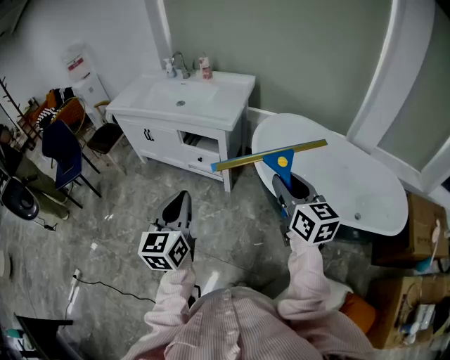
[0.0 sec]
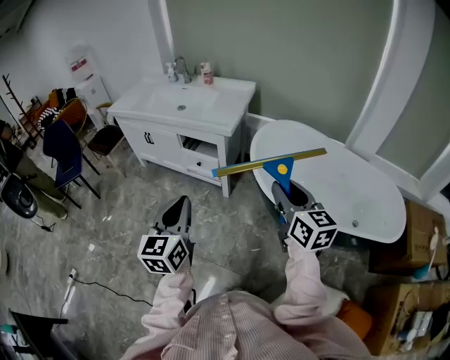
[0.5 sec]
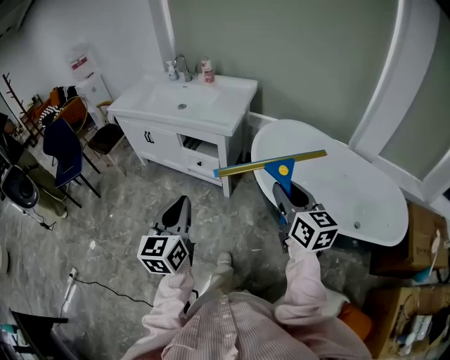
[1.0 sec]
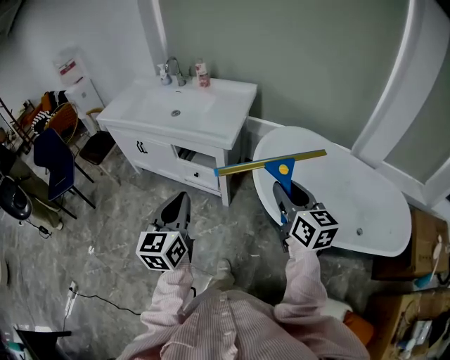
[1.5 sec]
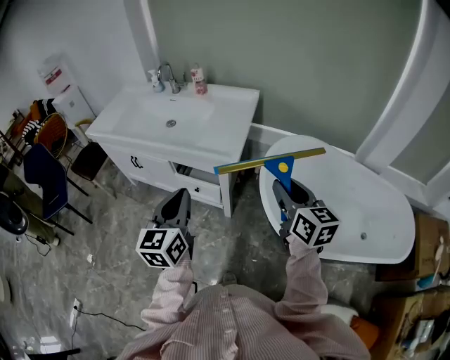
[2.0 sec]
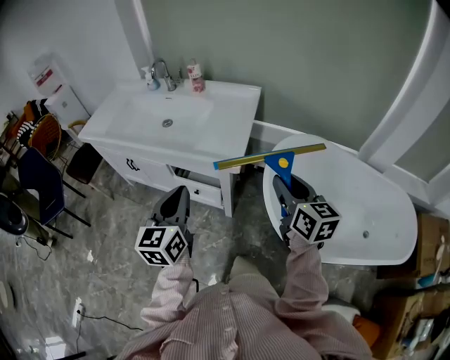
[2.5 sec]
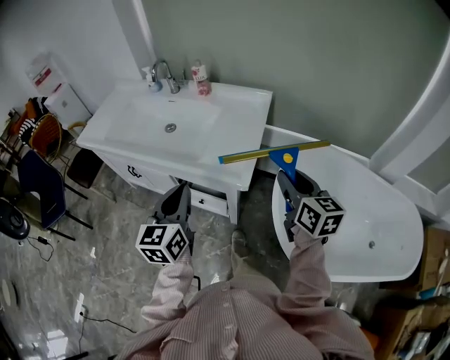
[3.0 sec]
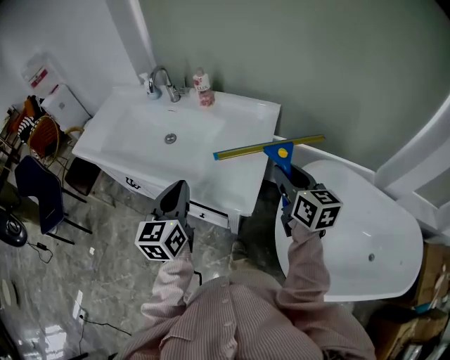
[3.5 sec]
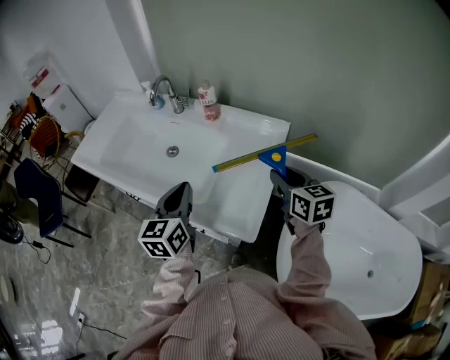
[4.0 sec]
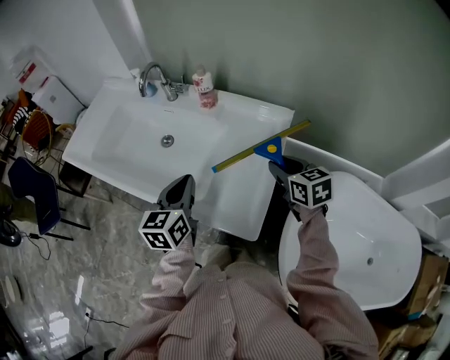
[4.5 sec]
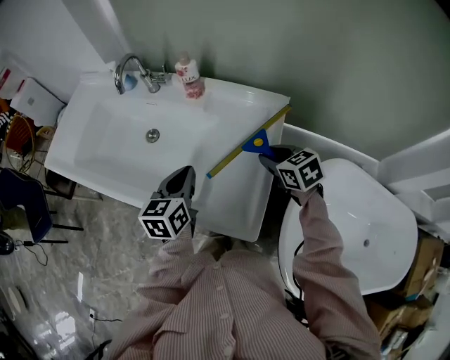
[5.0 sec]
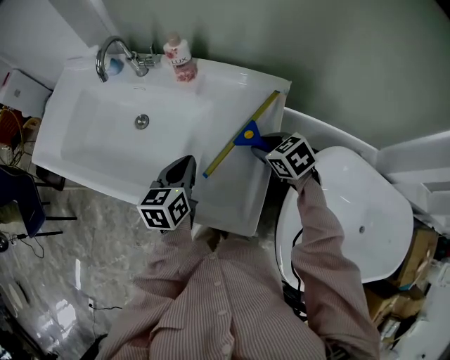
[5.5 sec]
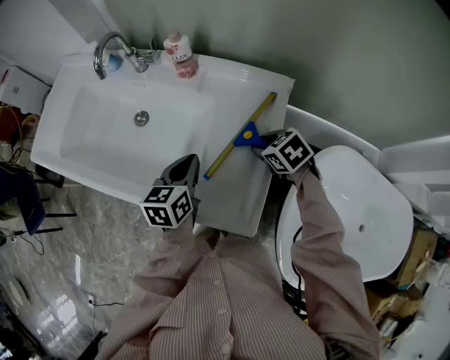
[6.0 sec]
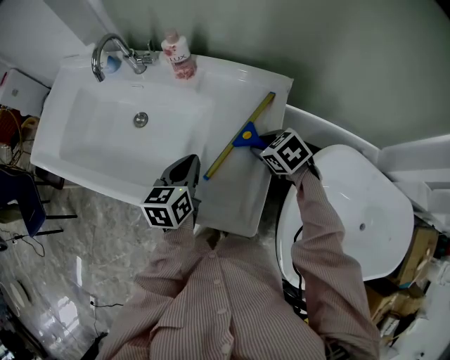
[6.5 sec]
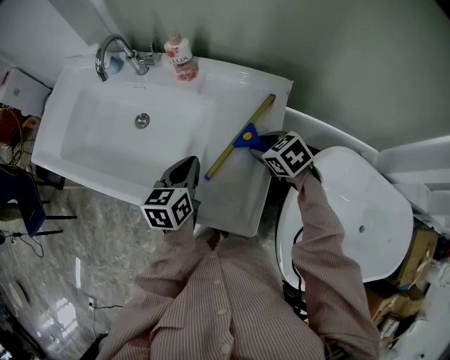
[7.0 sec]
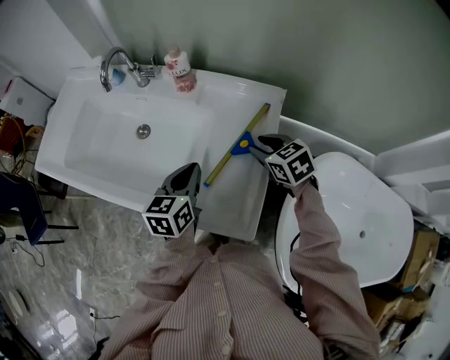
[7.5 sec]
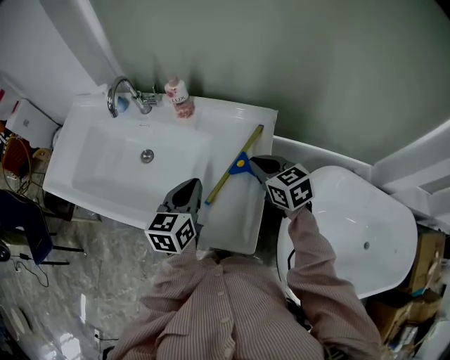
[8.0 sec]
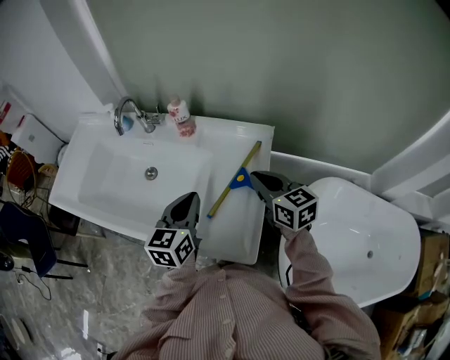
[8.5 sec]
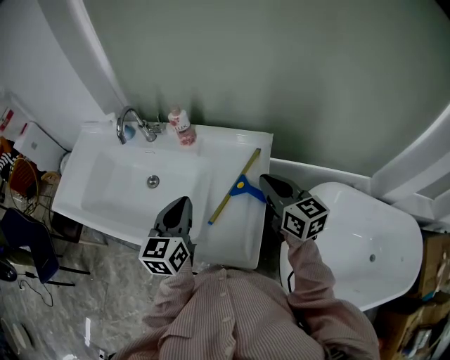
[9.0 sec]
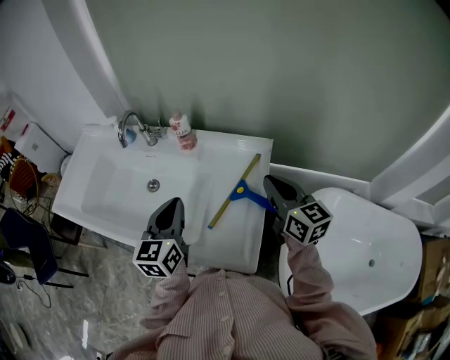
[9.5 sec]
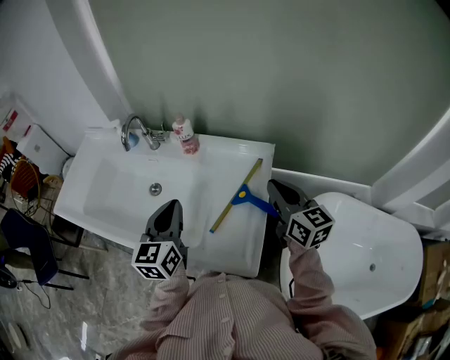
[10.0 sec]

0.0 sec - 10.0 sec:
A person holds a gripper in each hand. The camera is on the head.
0.0 sec - 2.0 sec: The grippers both shift forward by some 25 cm.
2.0 sec - 4.0 sec: Both grippers move forward, roughly 40 cm.
4.0 sec - 6.0 sec: The right gripper goes about 20 cm downward and forward, and tips its fingers downward by approximately 40 degrees. Meanwhile the left gripper moves downward, forward and to the right, approximately 20 cm, and rotates some 20 degrees.
6.0 sec - 8.0 sec: The left gripper heads upward, covering some 5 cm, while the right gripper is displaced upward by roughly 10 cm, rotates approximately 30 degrees, and closes.
8.0 sec - 10.0 sec: The left gripper goes approximately 10 cm upward and to the left; the right gripper is displaced upward by about 10 cm, and rotates approximately 30 degrees.

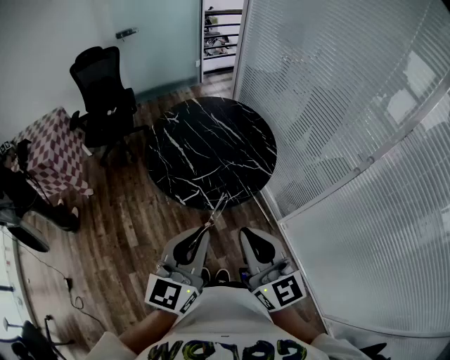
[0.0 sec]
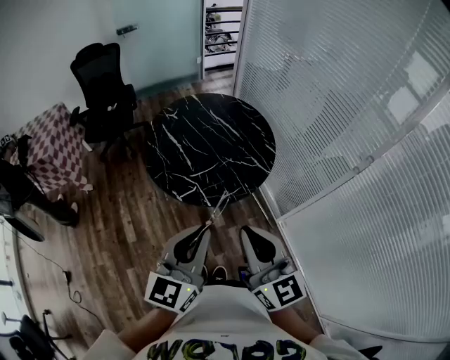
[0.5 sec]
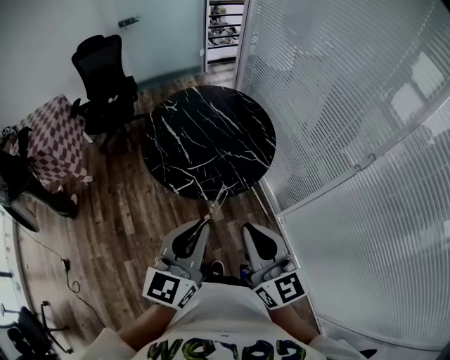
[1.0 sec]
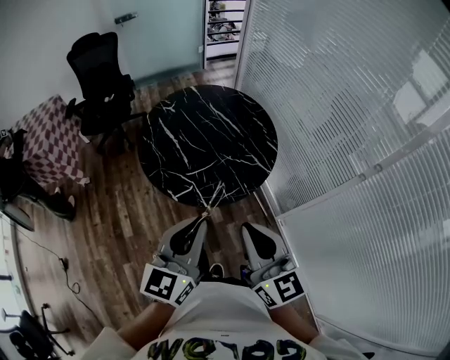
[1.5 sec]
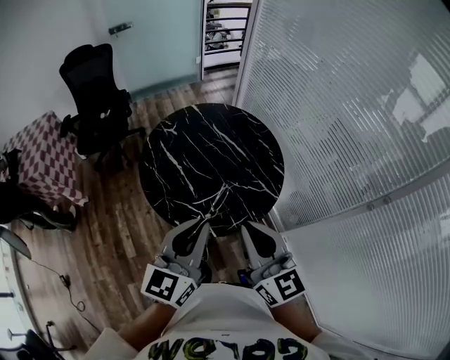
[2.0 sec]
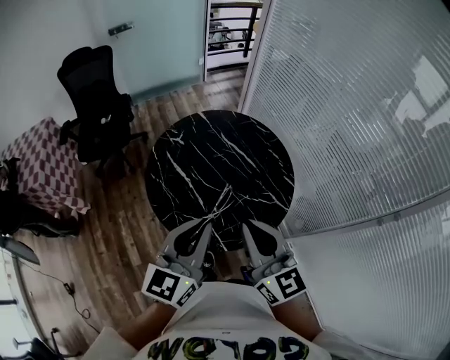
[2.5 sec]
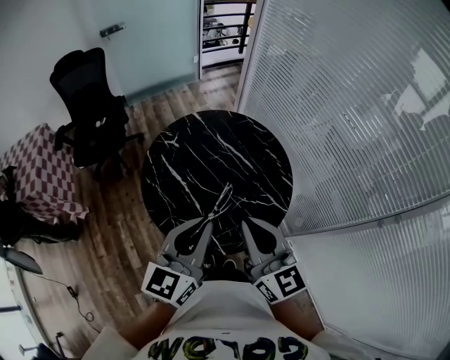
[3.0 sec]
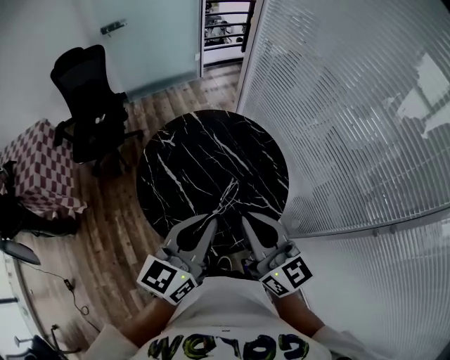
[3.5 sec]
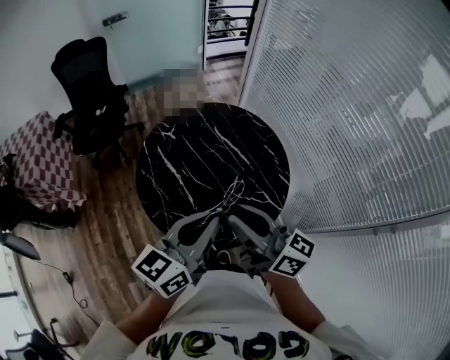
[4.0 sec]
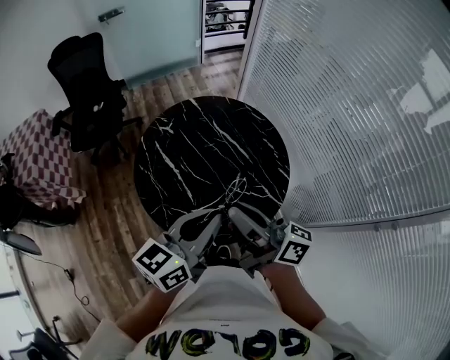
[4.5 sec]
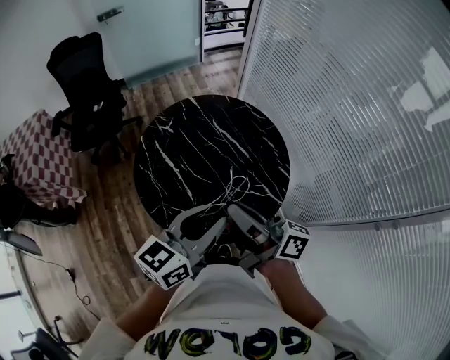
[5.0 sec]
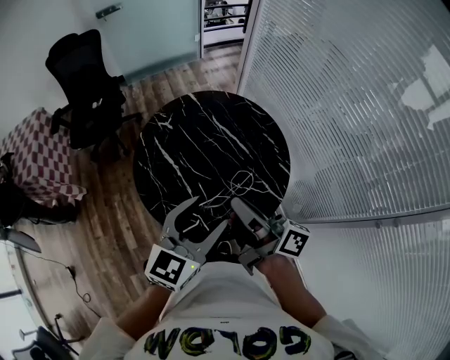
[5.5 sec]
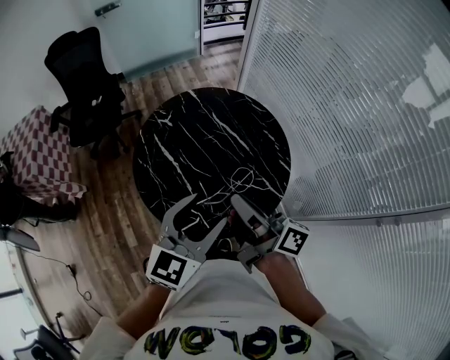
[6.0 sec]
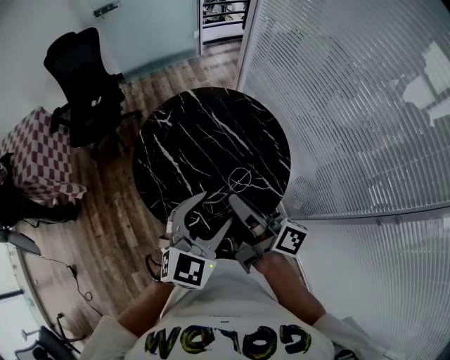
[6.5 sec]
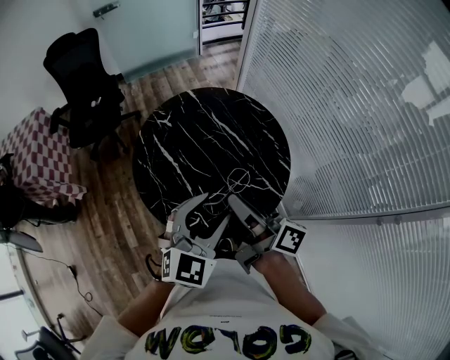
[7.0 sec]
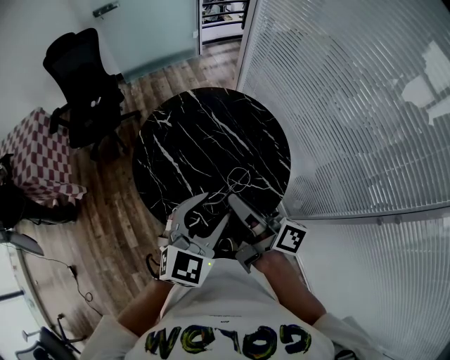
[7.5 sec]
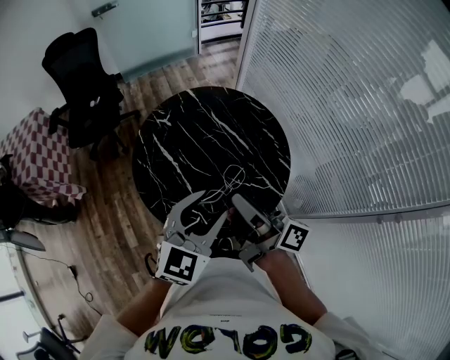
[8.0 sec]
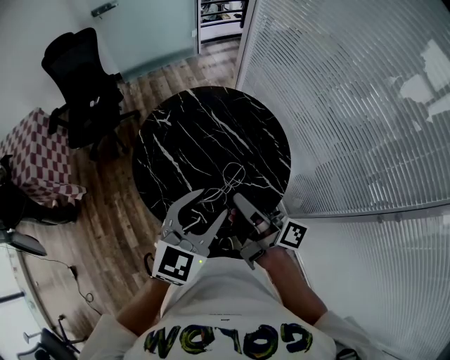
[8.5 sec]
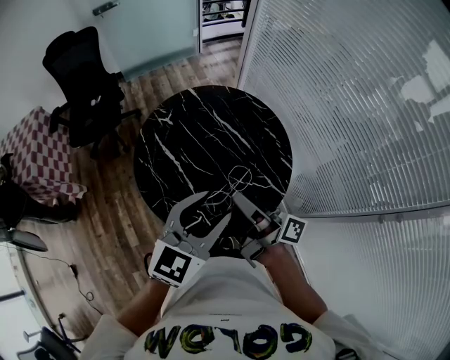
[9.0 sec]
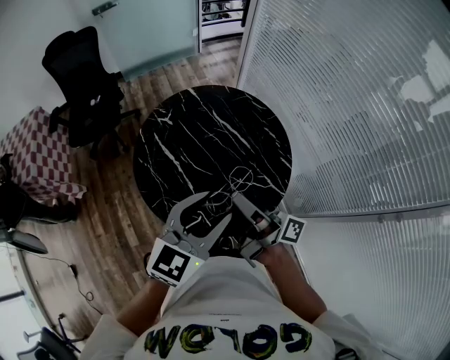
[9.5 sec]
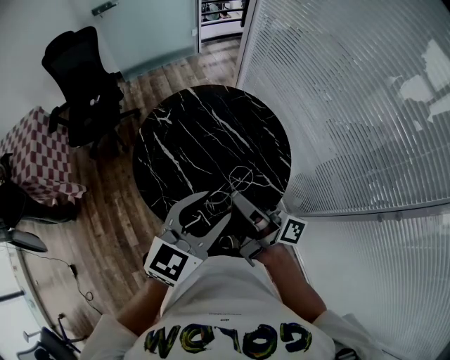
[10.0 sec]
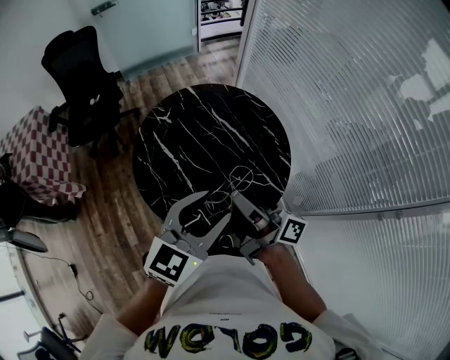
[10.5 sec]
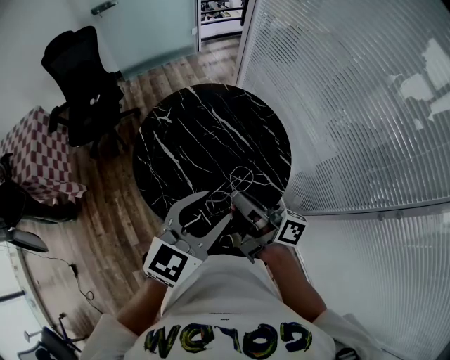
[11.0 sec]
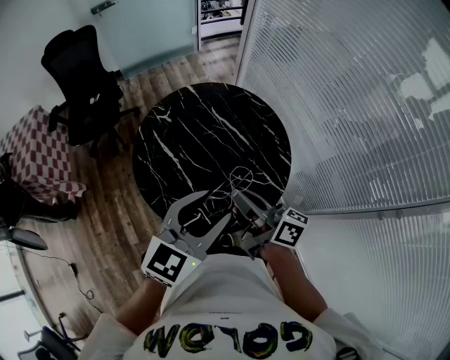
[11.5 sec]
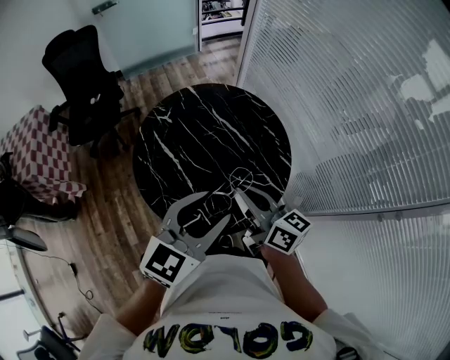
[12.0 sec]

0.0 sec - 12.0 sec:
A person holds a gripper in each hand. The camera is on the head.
0.0 sec - 2.0 sec: Both grippers move forward, some 20 cm.
2.0 sec - 4.0 sec: Both grippers travel together forward, some 15 cm. The right gripper turns by approximately 40 degrees, and opens.
4.0 sec - 6.0 sec: The left gripper rotates roughly 30 degrees, and opens up. Meanwhile the right gripper changes place by approximately 5 cm, and rotates approximately 30 degrees.
6.0 sec - 10.0 sec: The grippers stay close to where they were, moving slightly.
10.0 sec - 12.0 sec: The right gripper rotates roughly 50 degrees.

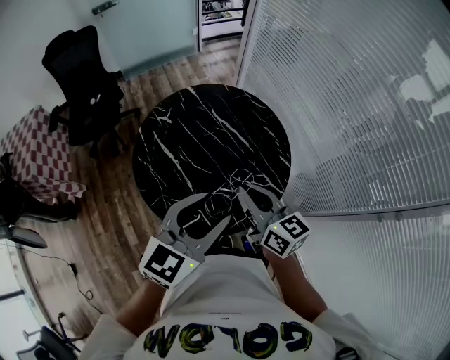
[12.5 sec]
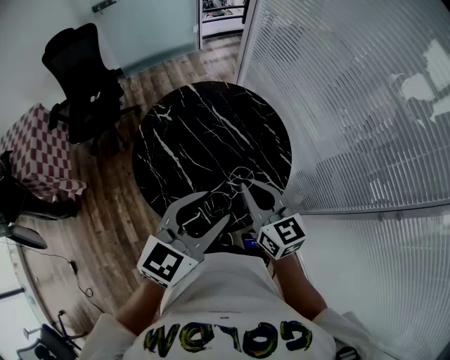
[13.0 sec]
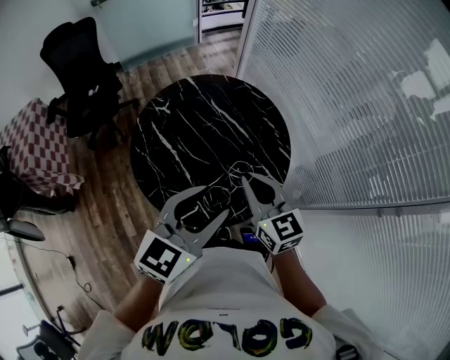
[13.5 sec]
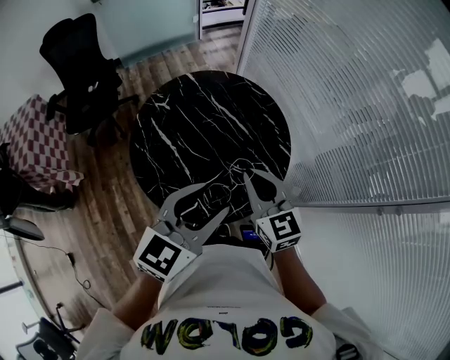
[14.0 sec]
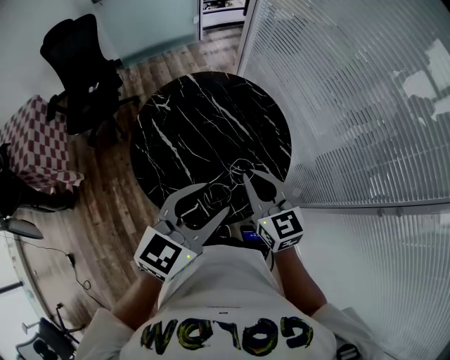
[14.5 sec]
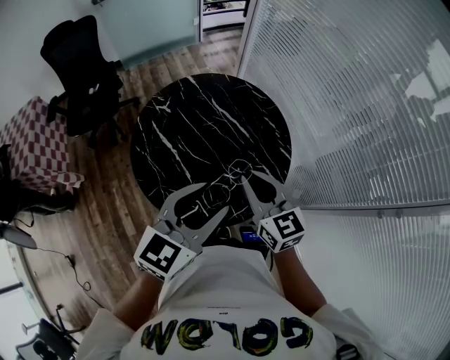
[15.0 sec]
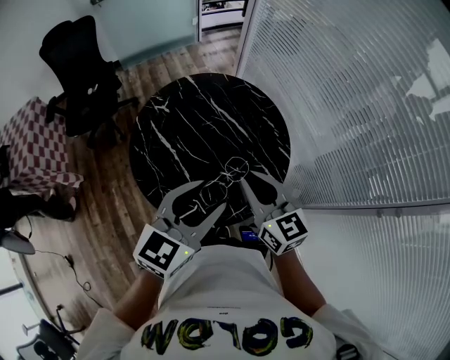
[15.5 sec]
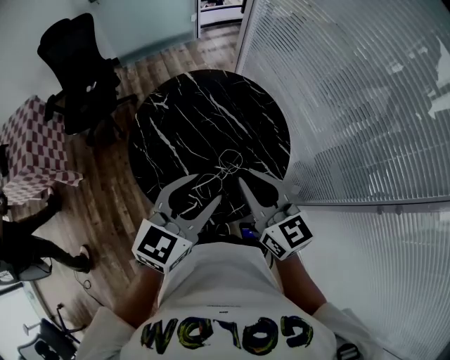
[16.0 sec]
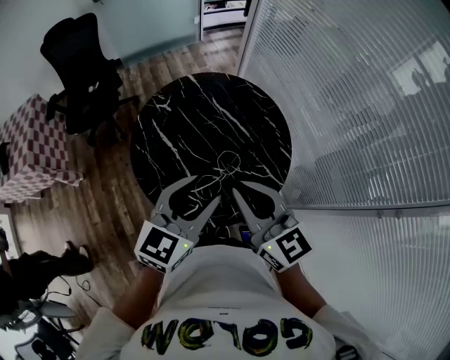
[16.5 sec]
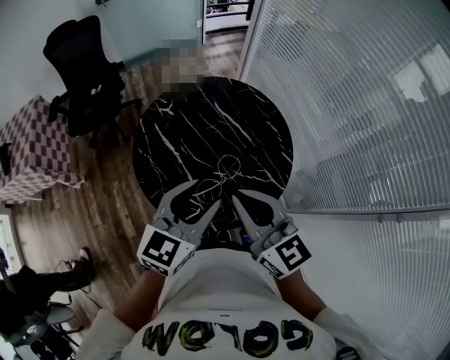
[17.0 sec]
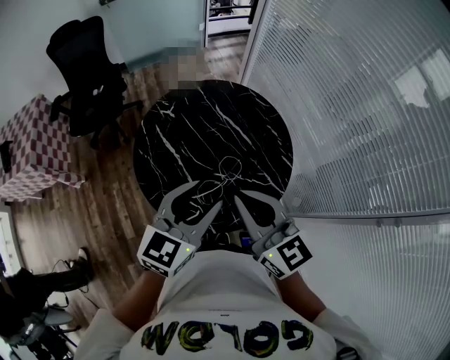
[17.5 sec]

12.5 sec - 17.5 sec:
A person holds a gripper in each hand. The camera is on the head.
15.0 sec - 17.5 sec: The right gripper moves upward, roughly 10 cm.
